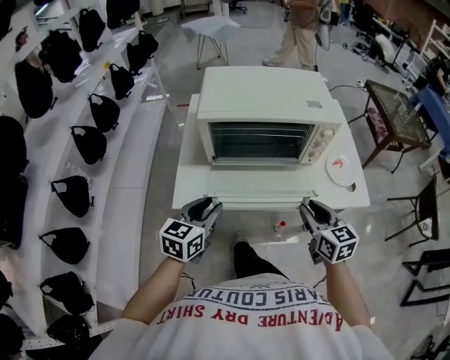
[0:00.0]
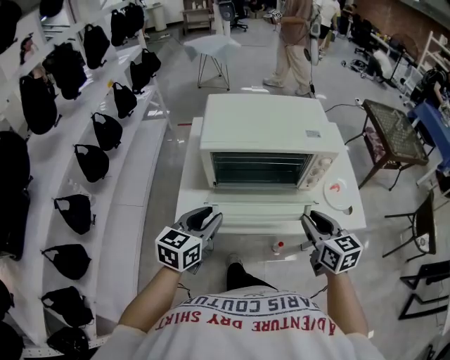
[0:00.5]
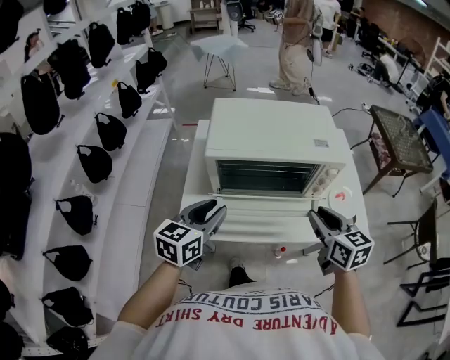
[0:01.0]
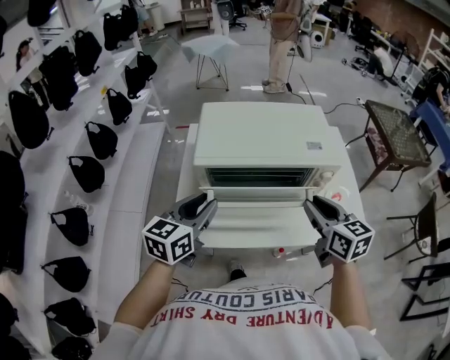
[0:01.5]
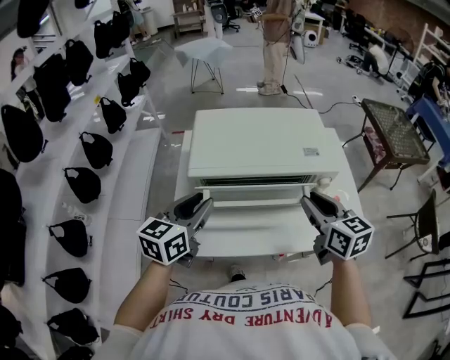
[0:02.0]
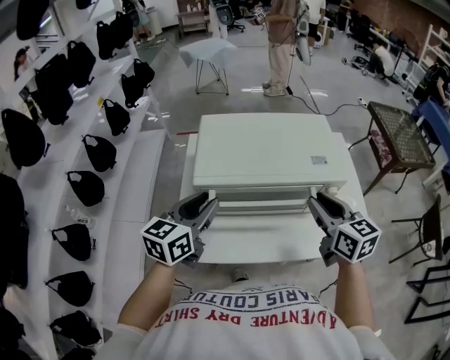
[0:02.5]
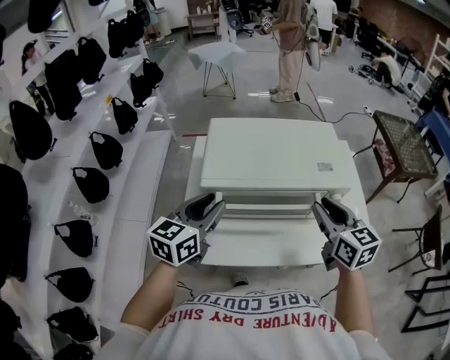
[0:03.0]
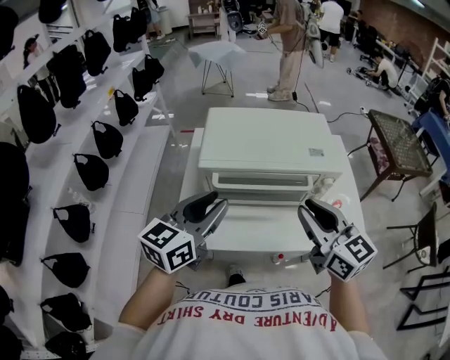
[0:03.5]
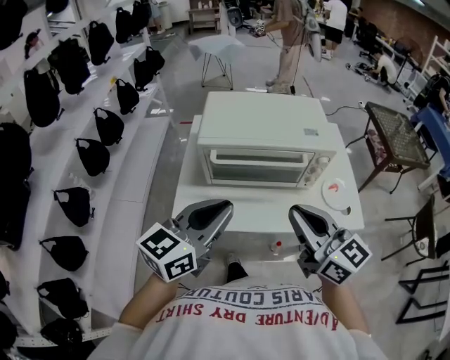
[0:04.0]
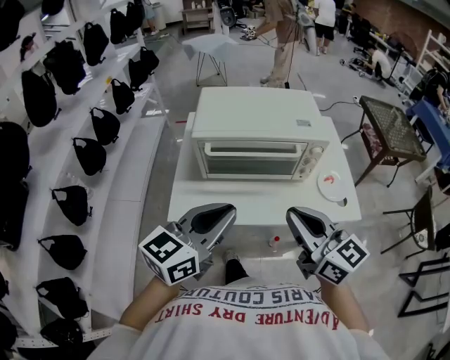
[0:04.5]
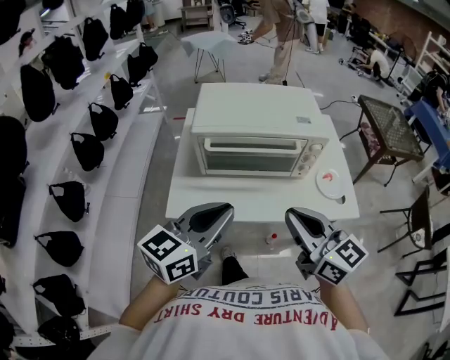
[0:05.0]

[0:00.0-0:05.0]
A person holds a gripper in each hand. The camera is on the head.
0:00.0 to 0:02.5: Both grippers move forward and upward, some 20 cm.
0:02.5 to 0:05.0: The left gripper goes some 20 cm backward and to the right, while the right gripper moves backward, some 20 cm, and turns by some 20 degrees.

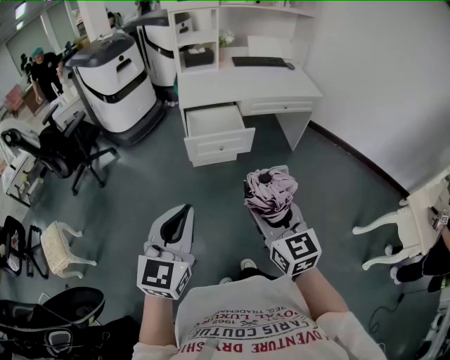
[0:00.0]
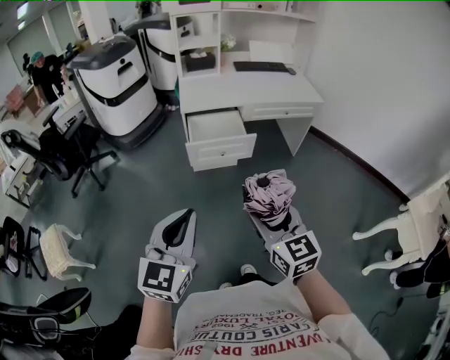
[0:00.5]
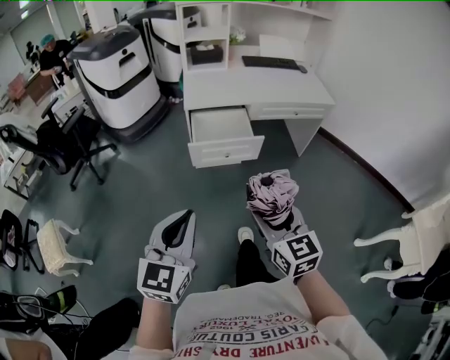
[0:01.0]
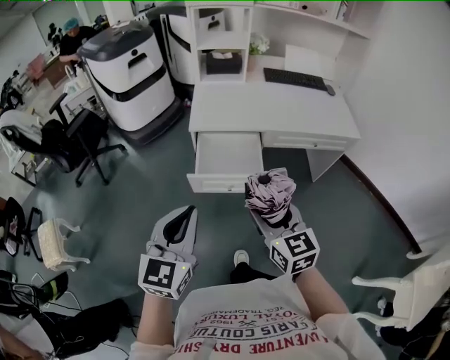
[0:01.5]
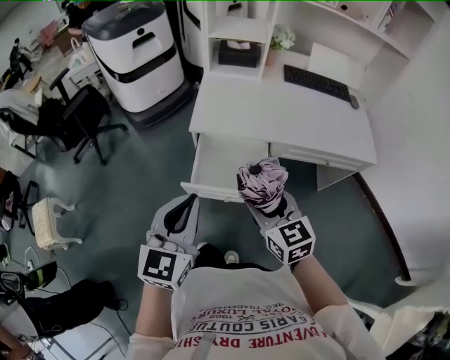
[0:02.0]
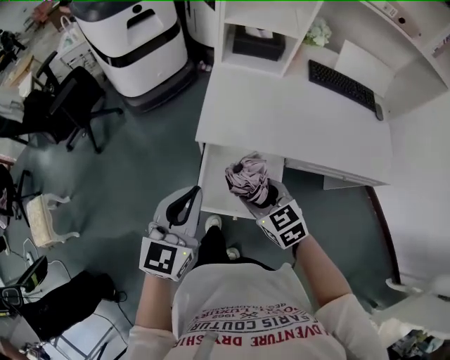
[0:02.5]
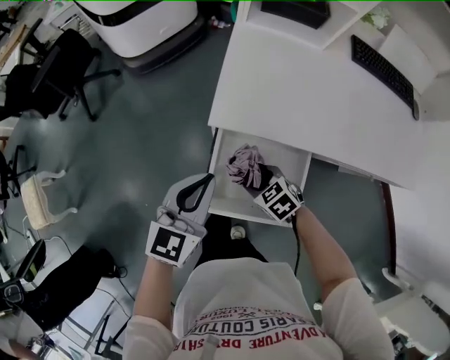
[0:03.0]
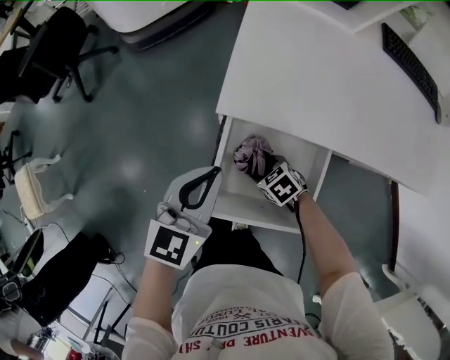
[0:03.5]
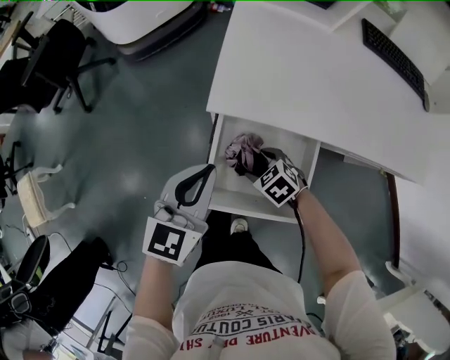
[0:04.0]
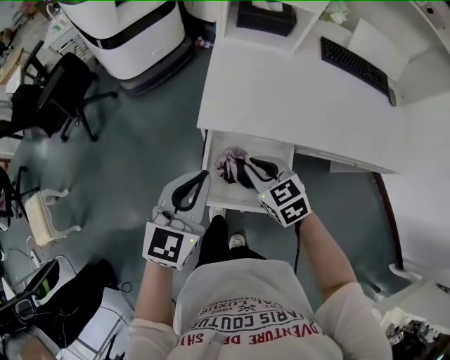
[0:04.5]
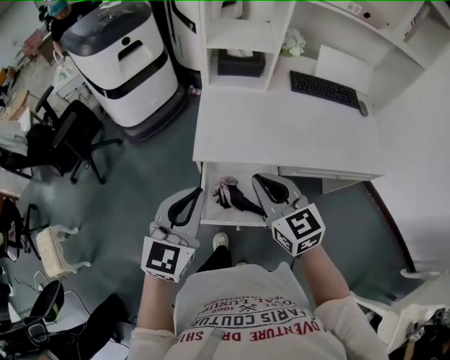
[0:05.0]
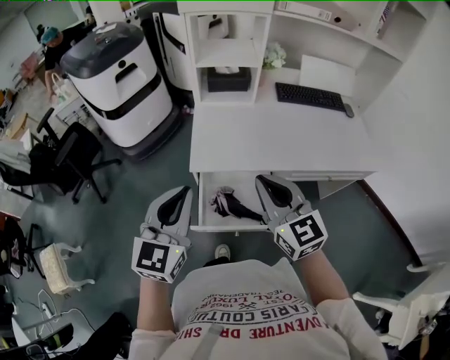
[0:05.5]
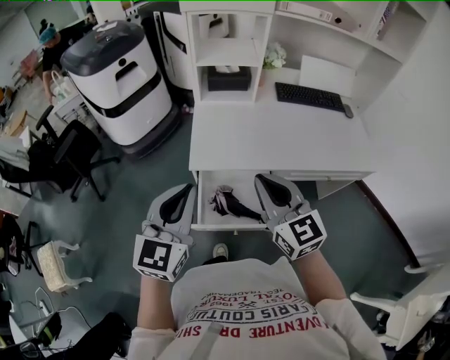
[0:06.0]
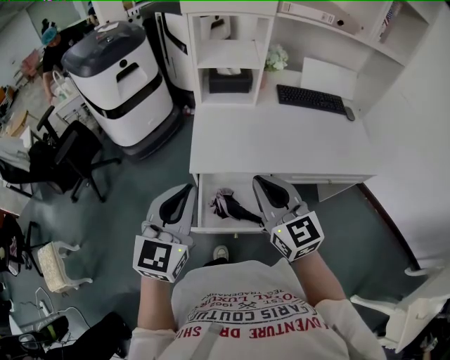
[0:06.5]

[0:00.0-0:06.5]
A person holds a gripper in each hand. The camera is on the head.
0:00.0 to 0:02.0: The two grippers travel together, forward, some 40 cm. The right gripper rotates about 20 degrees.
0:02.0 to 0:04.5: Both grippers travel together forward and downward, some 25 cm. The right gripper swivels approximately 20 degrees, and closes up.
0:04.5 to 0:06.5: The right gripper moves upward, about 25 cm, and tilts its fingers roughly 40 degrees upward, while the left gripper travels upward by some 15 cm.

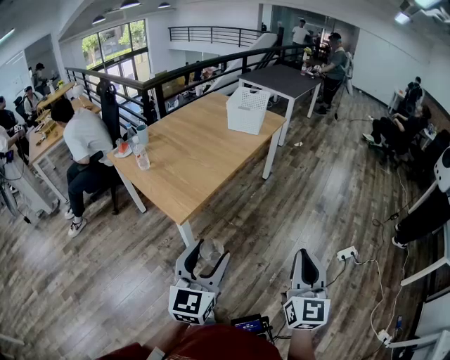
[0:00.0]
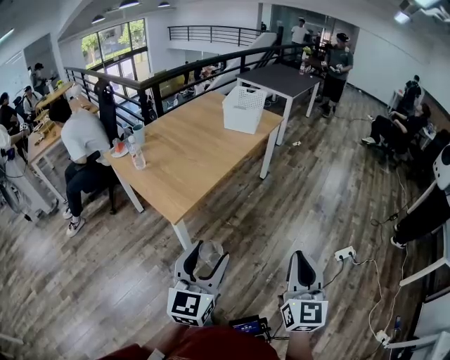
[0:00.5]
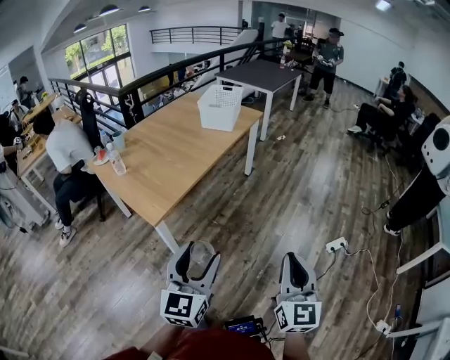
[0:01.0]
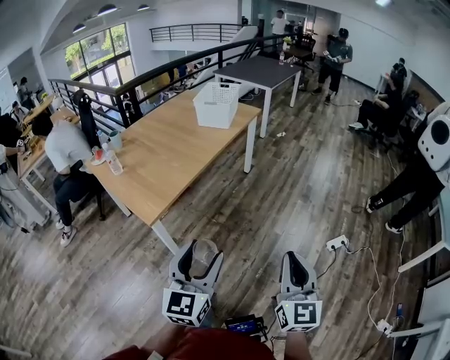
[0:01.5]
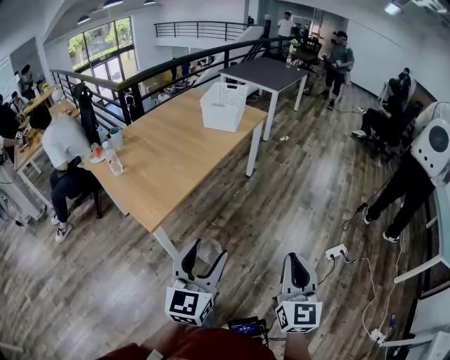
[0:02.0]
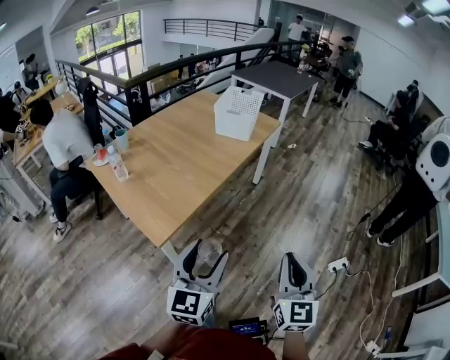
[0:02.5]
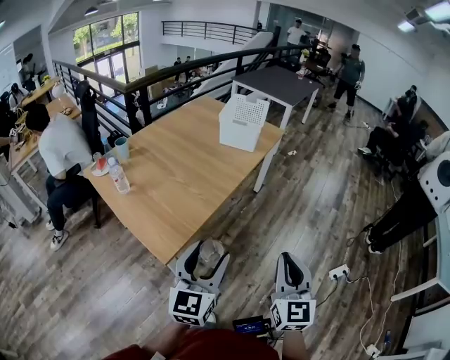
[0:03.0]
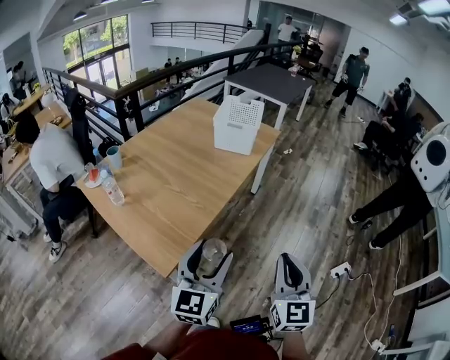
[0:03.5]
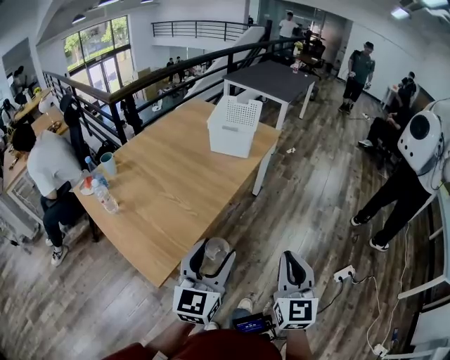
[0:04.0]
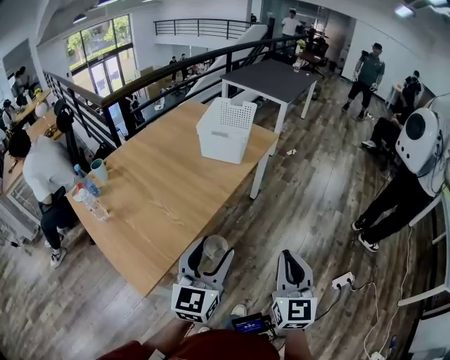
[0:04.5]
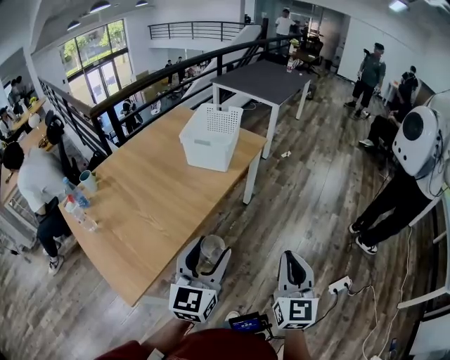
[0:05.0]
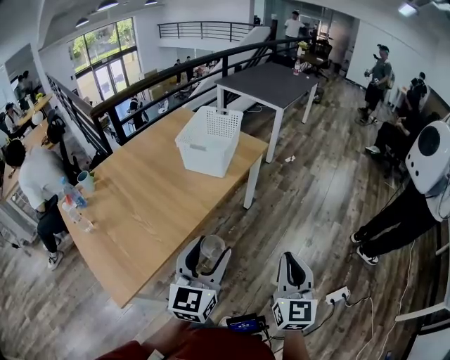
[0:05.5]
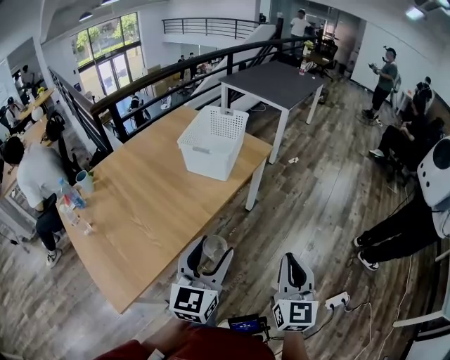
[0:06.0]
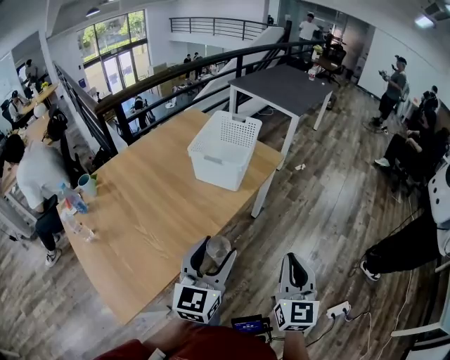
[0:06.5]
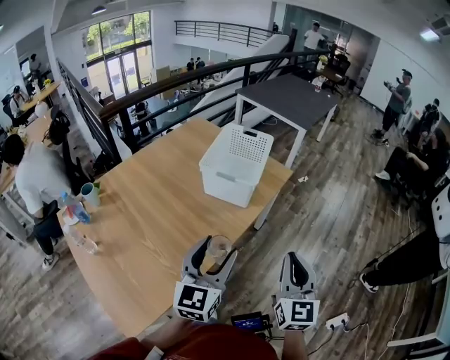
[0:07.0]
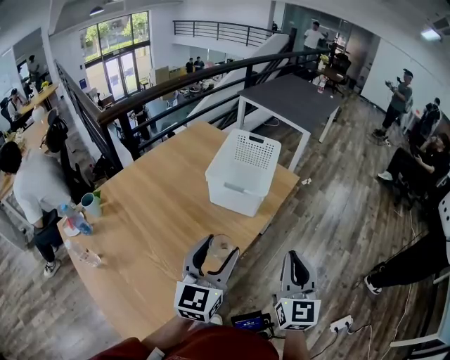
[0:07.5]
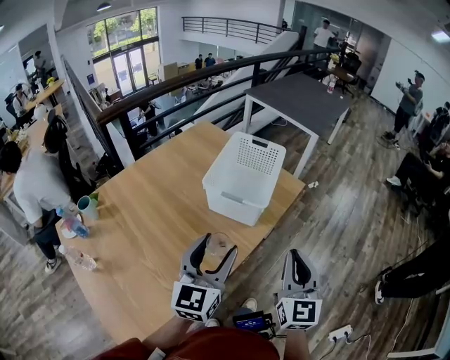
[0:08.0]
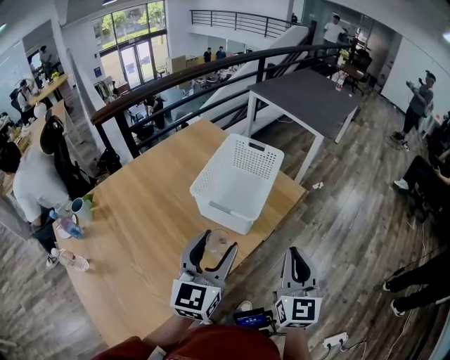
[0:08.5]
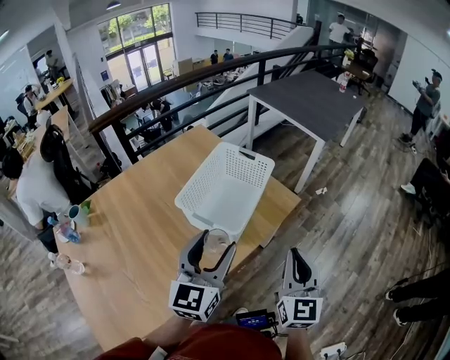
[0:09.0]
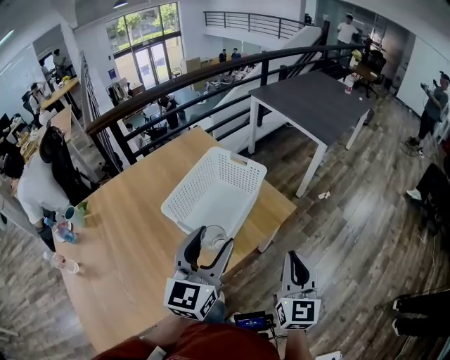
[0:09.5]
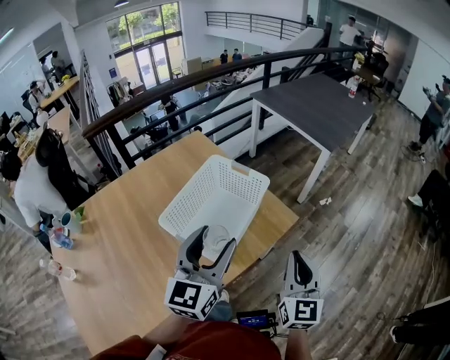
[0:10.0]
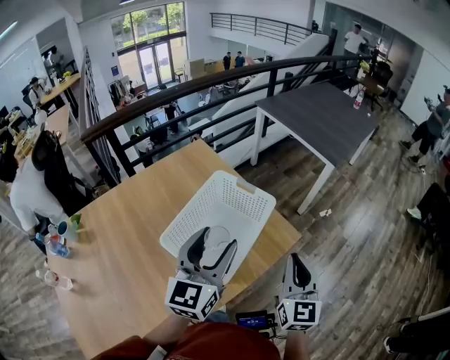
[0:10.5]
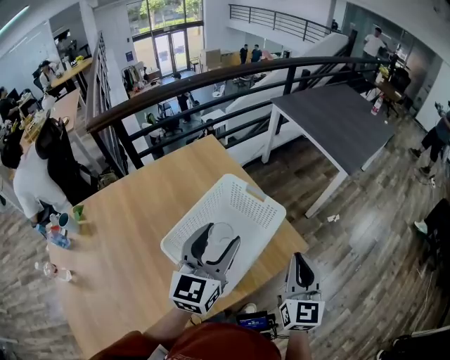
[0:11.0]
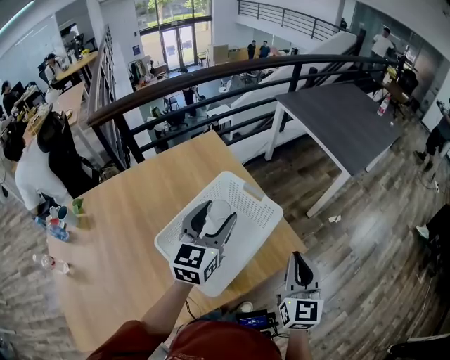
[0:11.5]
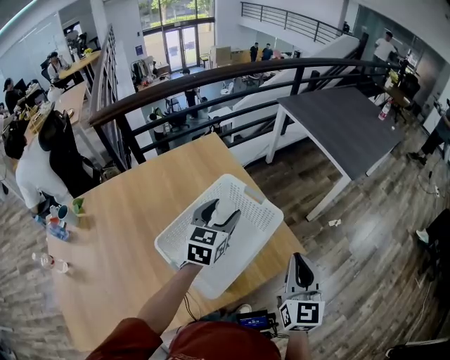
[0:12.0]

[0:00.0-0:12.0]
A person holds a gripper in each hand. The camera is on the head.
0:00.0 to 0:02.0: Both grippers move to the right and forward, about 10 cm.
0:02.0 to 0:04.0: The left gripper is displaced forward by approximately 20 cm, while the right gripper goes roughly 25 cm forward and to the left.
0:04.0 to 0:06.0: The grippers both shift forward and to the right by approximately 25 cm.
0:06.0 to 0:08.0: The grippers both shift forward and to the left by about 25 cm.
0:08.0 to 0:10.0: The two grippers go approximately 25 cm forward and to the right.
0:10.0 to 0:12.0: The right gripper moves forward, approximately 15 cm. The left gripper travels forward and downward by roughly 25 cm.

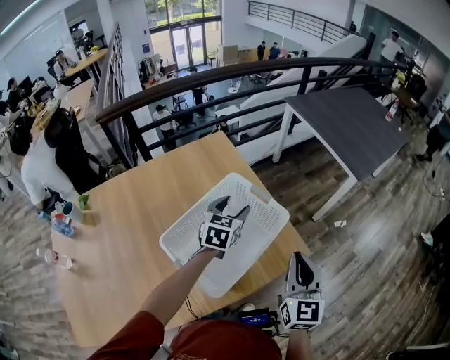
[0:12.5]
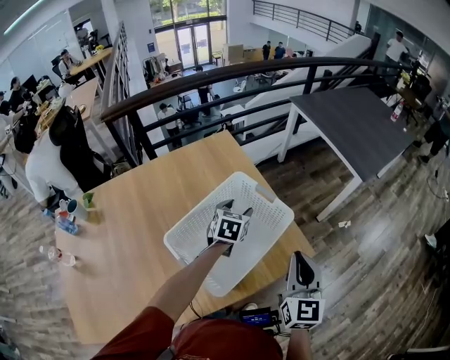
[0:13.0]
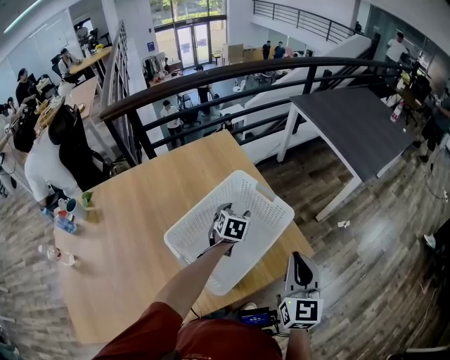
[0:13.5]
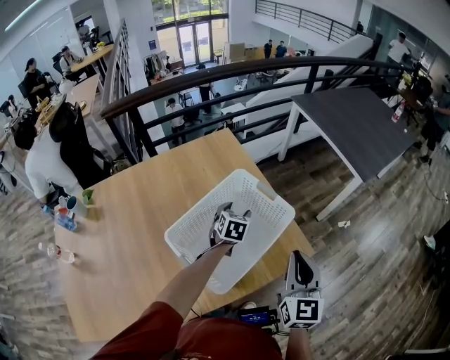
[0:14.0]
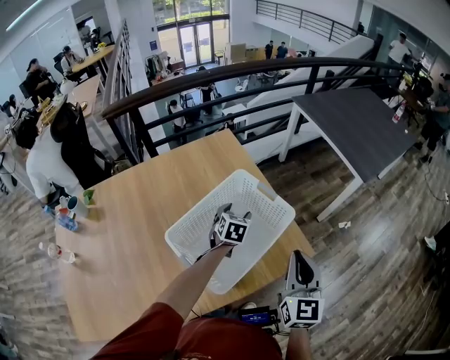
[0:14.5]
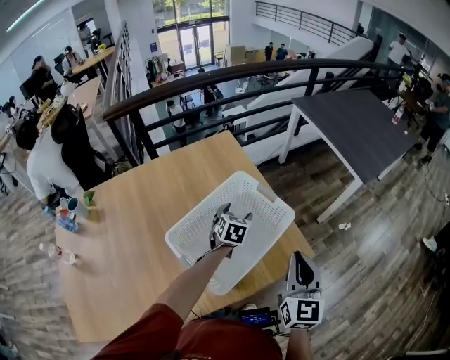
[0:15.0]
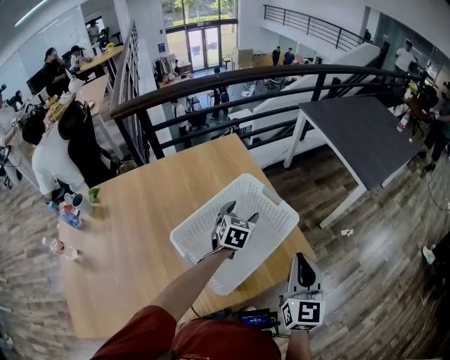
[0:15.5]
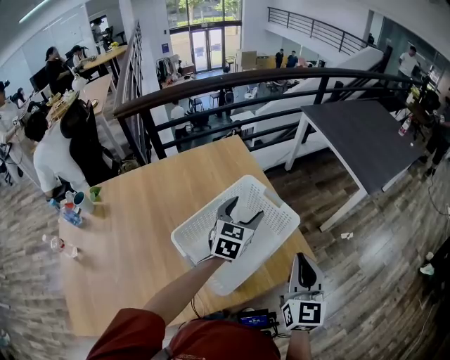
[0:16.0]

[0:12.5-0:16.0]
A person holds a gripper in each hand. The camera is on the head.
0:12.5 to 0:14.5: The left gripper shifts approximately 10 cm downward.
0:14.5 to 0:16.0: The left gripper travels upward by approximately 15 cm, and swivels about 20 degrees.
